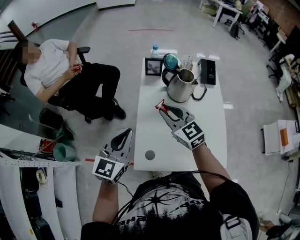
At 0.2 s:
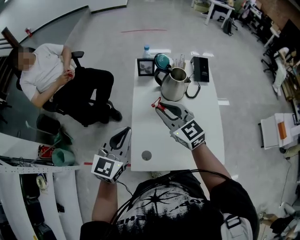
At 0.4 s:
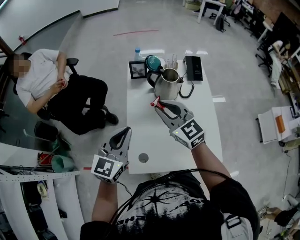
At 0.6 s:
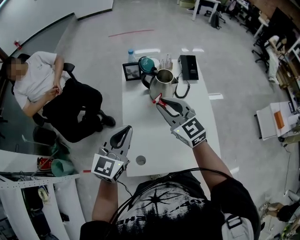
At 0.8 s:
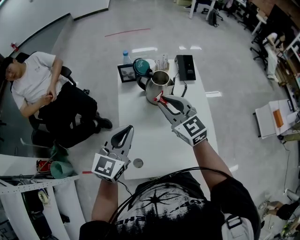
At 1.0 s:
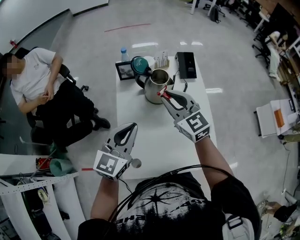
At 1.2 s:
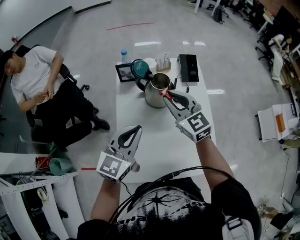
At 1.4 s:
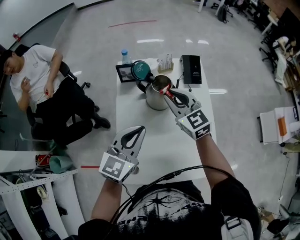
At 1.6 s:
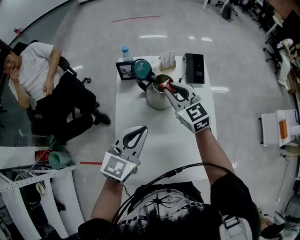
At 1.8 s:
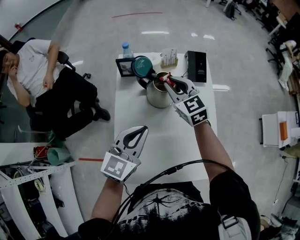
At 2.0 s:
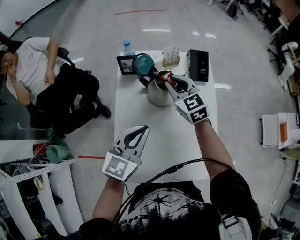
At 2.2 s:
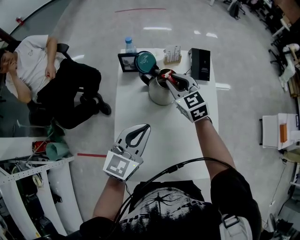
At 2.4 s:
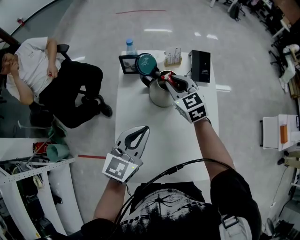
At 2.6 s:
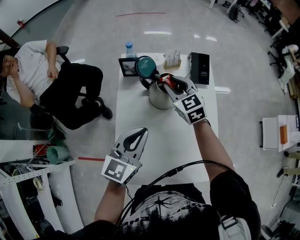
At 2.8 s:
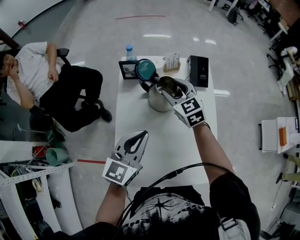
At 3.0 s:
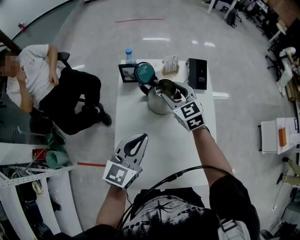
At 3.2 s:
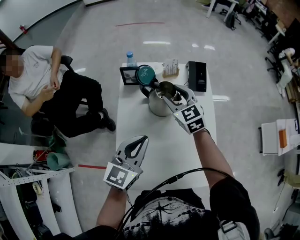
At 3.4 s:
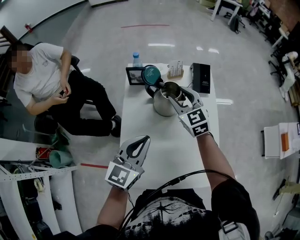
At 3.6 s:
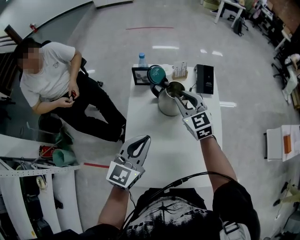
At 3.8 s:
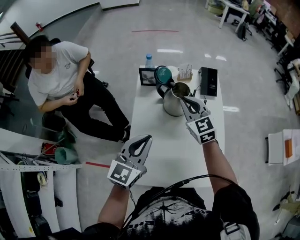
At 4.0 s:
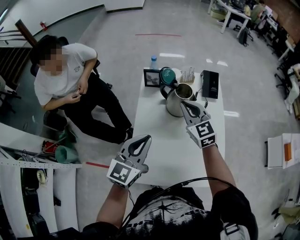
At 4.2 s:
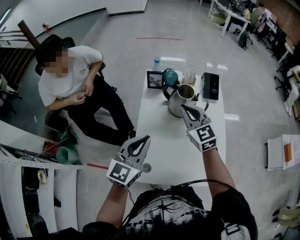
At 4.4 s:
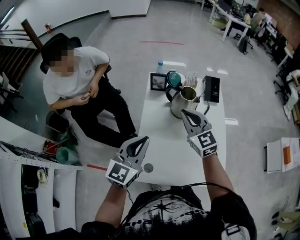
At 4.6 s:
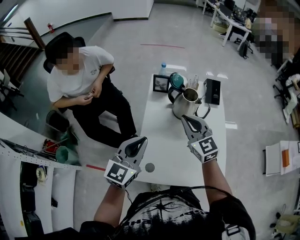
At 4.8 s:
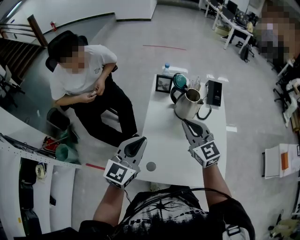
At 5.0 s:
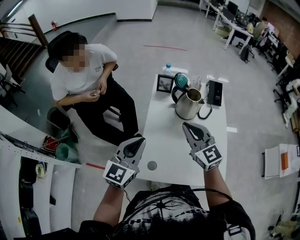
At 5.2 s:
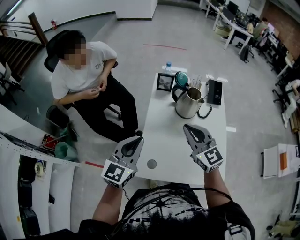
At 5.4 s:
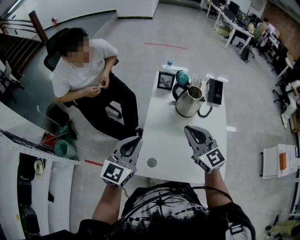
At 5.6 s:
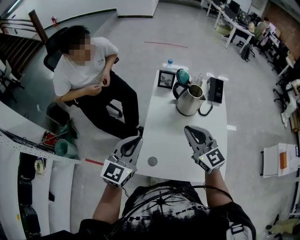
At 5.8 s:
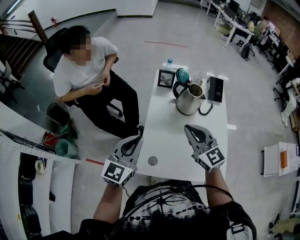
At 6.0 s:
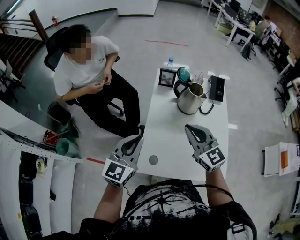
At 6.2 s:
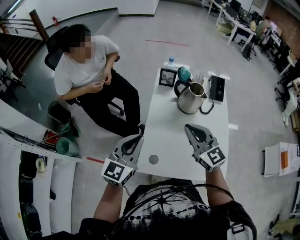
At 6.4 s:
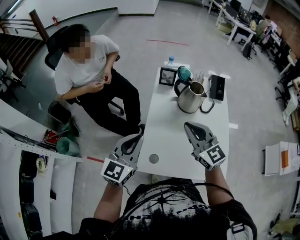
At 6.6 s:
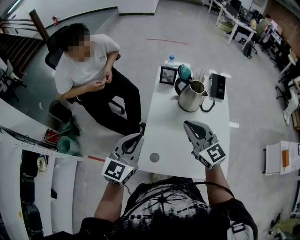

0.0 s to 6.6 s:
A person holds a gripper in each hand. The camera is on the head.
0.0 to 1.6 s: The left gripper moves to the right and forward, roughly 20 cm. The right gripper moves forward and to the right, approximately 20 cm.
1.6 to 3.2 s: The right gripper opens up.
3.2 to 5.0 s: The right gripper travels backward, upward and to the left by some 25 cm, swivels roughly 20 degrees, and closes. Meanwhile the left gripper goes roughly 20 cm to the left and backward.
5.0 to 6.6 s: The grippers stay close to where they were, moving slightly.

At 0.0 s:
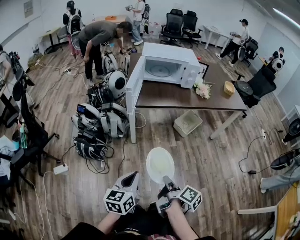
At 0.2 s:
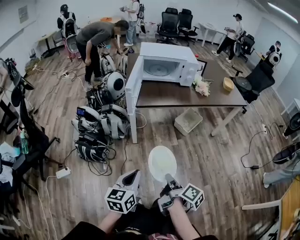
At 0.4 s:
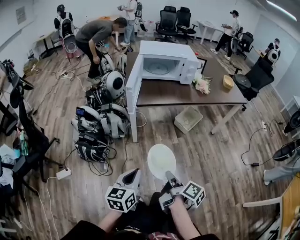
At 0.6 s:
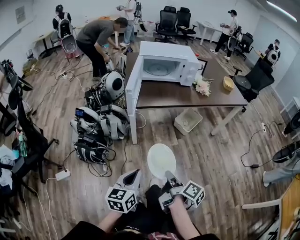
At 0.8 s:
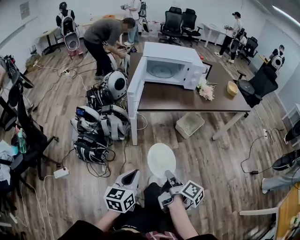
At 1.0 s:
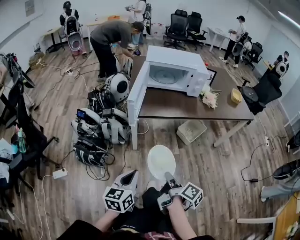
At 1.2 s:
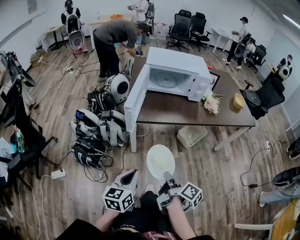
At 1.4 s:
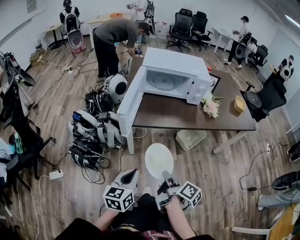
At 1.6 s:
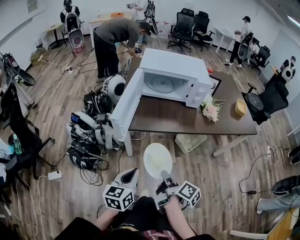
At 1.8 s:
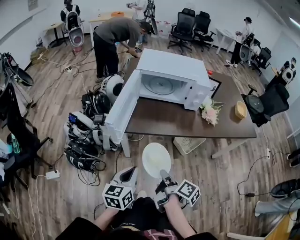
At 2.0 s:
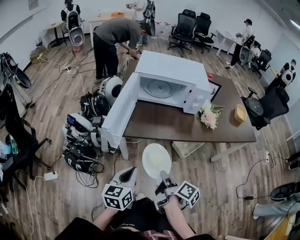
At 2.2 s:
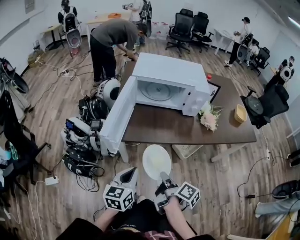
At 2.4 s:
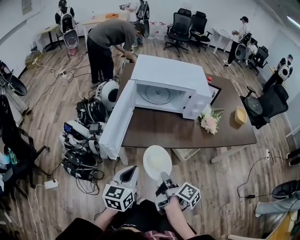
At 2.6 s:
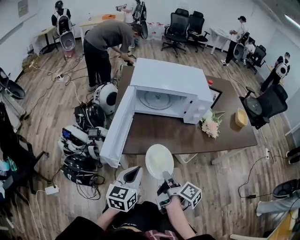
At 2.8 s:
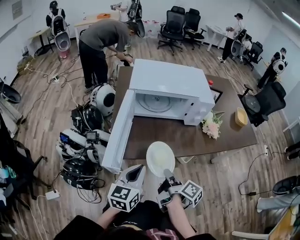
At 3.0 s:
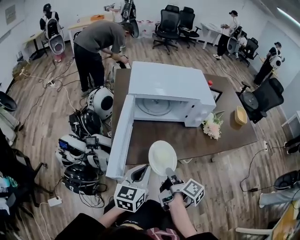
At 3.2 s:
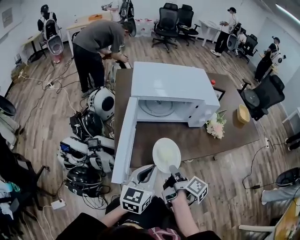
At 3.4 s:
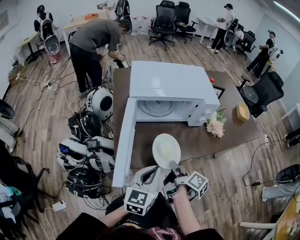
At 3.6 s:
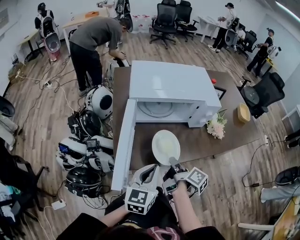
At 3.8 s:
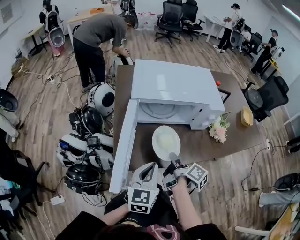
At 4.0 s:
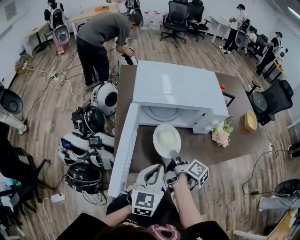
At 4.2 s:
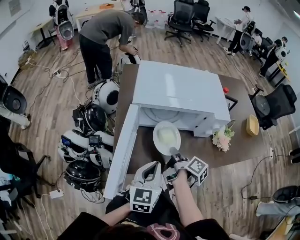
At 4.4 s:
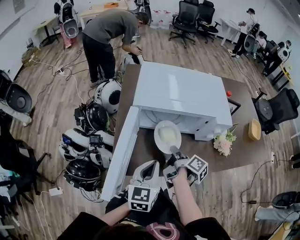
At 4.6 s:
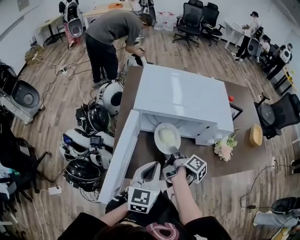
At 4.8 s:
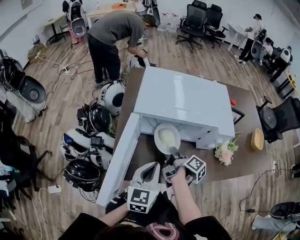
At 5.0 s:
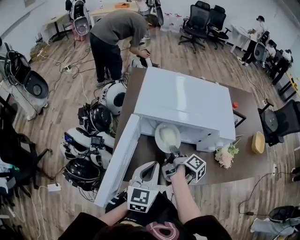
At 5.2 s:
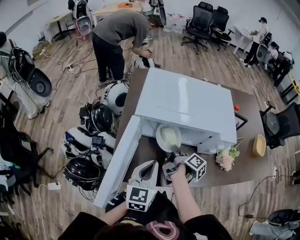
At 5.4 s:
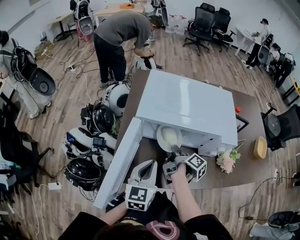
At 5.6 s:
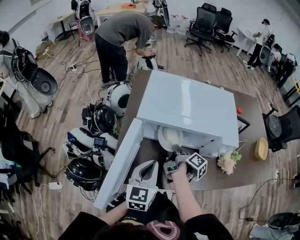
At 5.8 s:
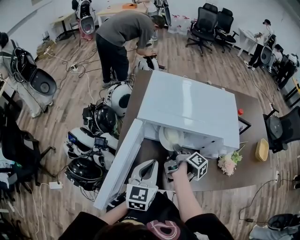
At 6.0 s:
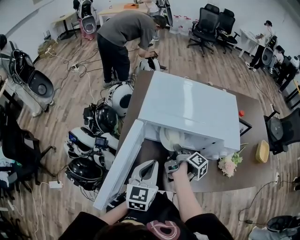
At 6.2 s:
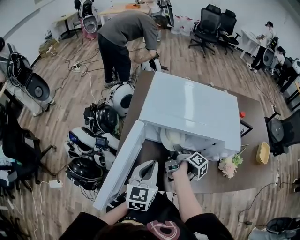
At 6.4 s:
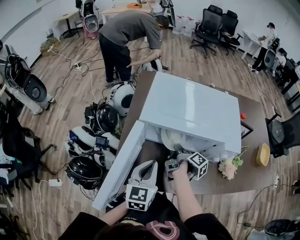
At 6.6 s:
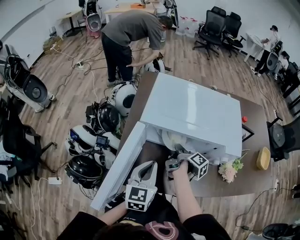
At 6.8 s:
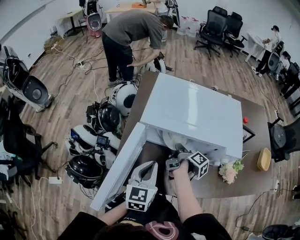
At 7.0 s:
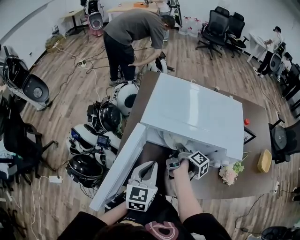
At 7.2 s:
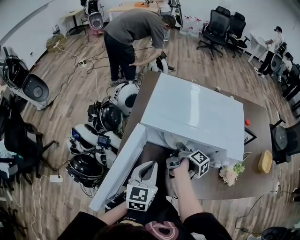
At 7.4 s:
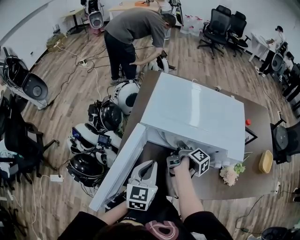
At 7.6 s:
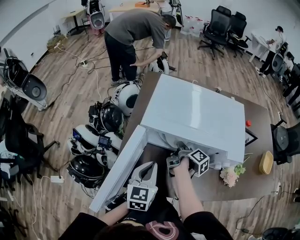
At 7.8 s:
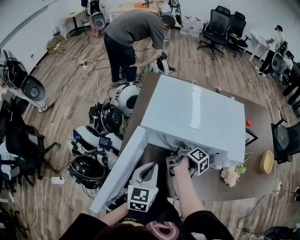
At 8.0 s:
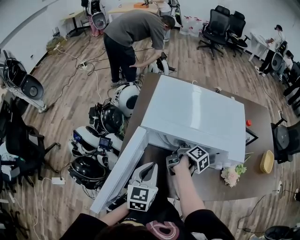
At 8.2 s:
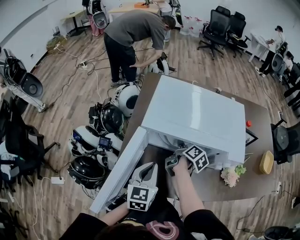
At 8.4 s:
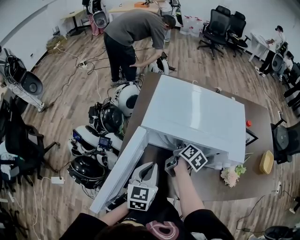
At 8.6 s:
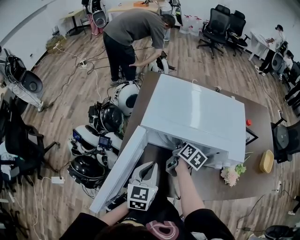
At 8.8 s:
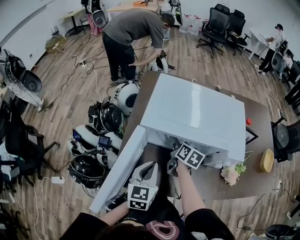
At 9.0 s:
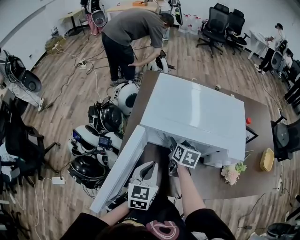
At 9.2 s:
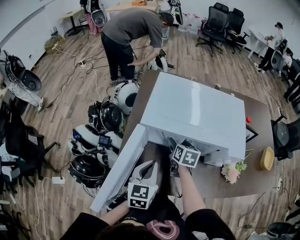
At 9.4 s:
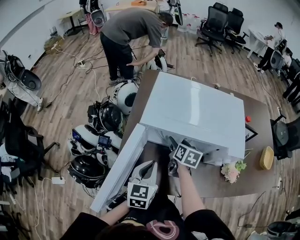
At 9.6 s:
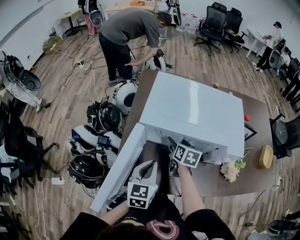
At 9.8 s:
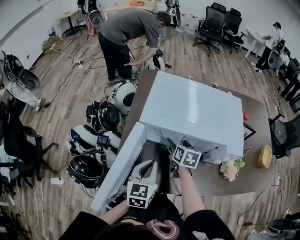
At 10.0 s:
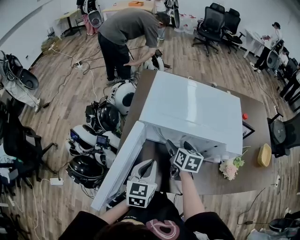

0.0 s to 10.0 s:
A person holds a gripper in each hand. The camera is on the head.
0.0 to 1.4 s: Both grippers travel together forward, about 20 cm.
1.4 to 2.8 s: The two grippers go some 25 cm forward.
2.8 to 4.2 s: The left gripper goes approximately 10 cm forward. Meanwhile the right gripper shifts approximately 20 cm forward.
4.2 to 5.8 s: Both grippers move forward, roughly 10 cm.
5.8 to 7.2 s: The grippers make only small movements.
7.2 to 8.6 s: The right gripper twists roughly 40 degrees counterclockwise, seen from behind.
8.6 to 10.0 s: The right gripper swivels about 30 degrees, and opens its fingers.

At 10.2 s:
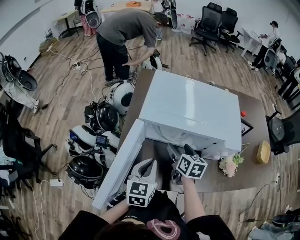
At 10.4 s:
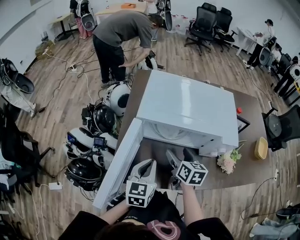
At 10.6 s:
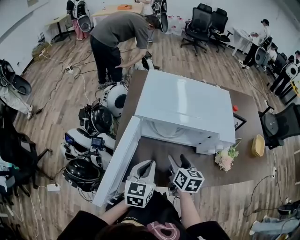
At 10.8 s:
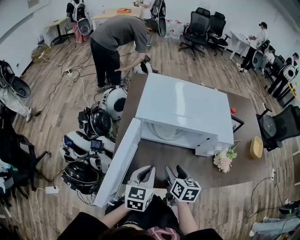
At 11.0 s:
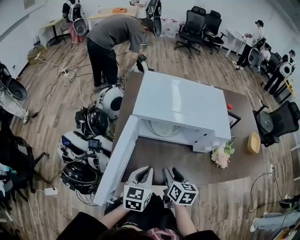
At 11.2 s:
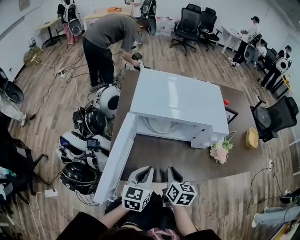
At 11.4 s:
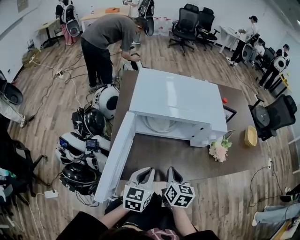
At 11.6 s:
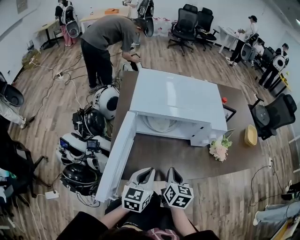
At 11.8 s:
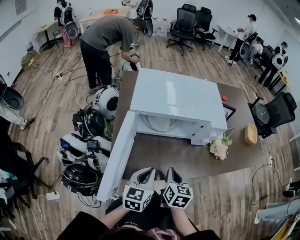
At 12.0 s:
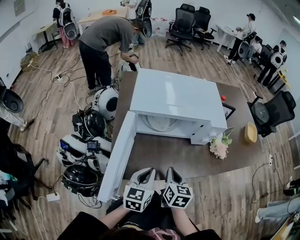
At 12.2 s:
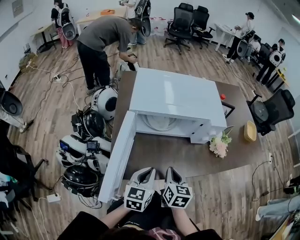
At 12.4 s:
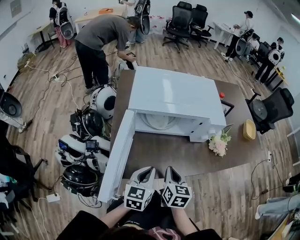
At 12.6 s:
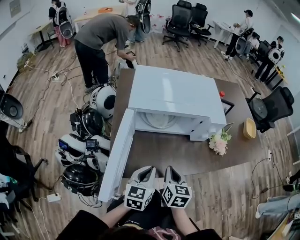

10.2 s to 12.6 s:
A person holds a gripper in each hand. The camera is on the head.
10.2 to 11.4 s: The right gripper goes about 15 cm backward, and closes up, while the left gripper is displaced backward by approximately 10 cm.
11.4 to 12.6 s: The grippers move only a little.

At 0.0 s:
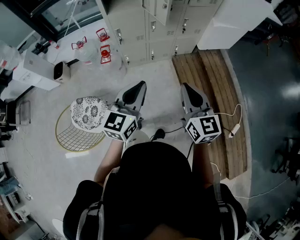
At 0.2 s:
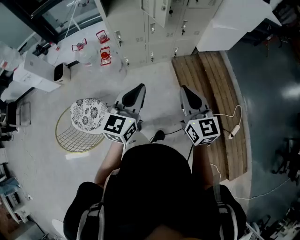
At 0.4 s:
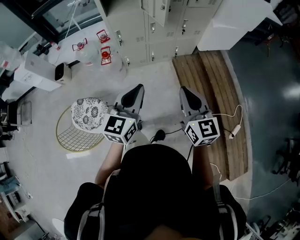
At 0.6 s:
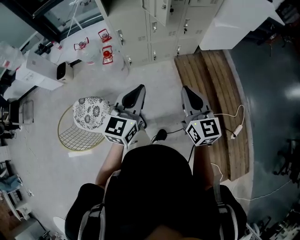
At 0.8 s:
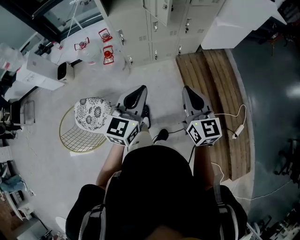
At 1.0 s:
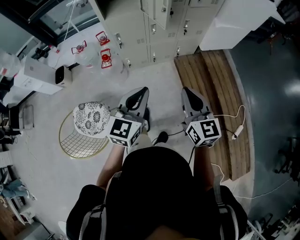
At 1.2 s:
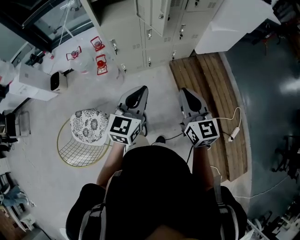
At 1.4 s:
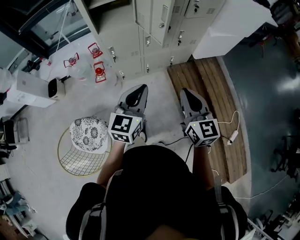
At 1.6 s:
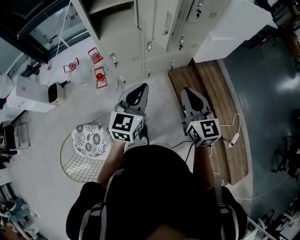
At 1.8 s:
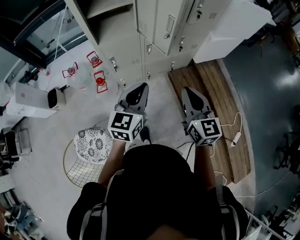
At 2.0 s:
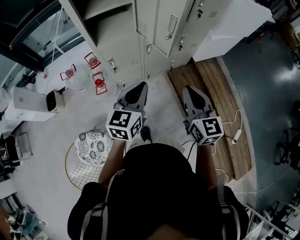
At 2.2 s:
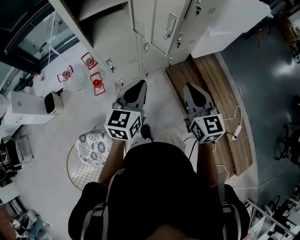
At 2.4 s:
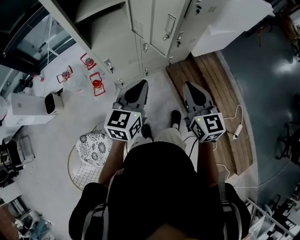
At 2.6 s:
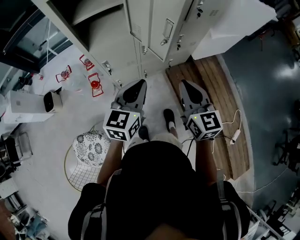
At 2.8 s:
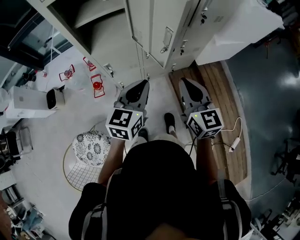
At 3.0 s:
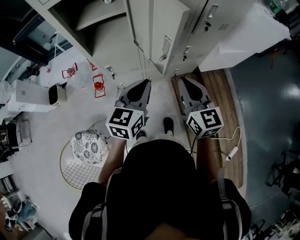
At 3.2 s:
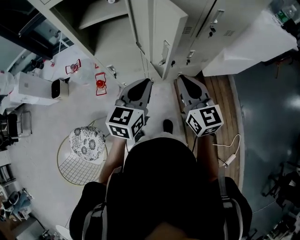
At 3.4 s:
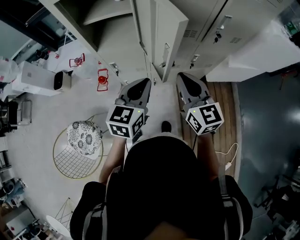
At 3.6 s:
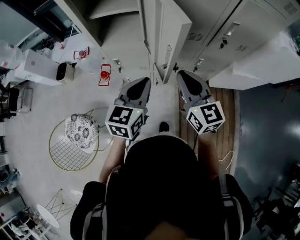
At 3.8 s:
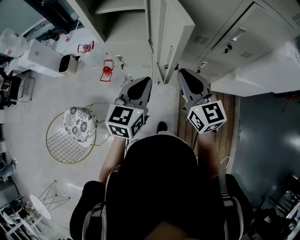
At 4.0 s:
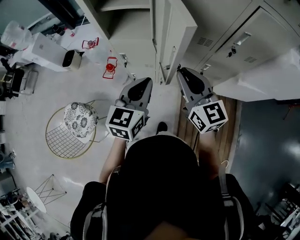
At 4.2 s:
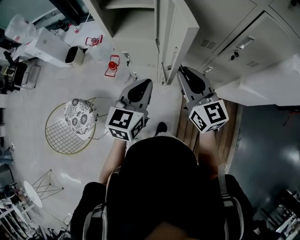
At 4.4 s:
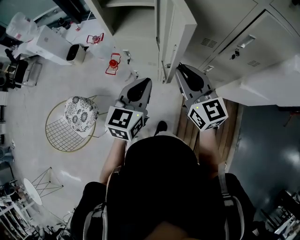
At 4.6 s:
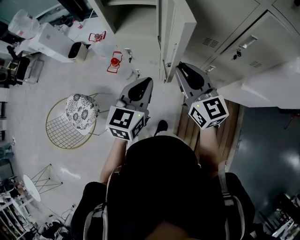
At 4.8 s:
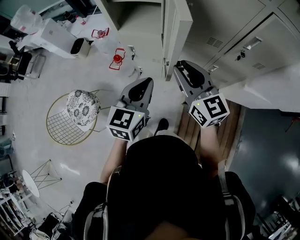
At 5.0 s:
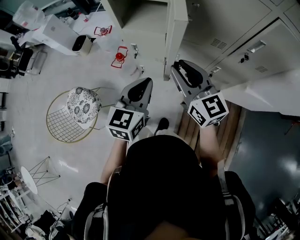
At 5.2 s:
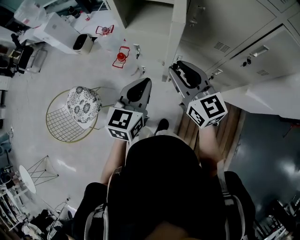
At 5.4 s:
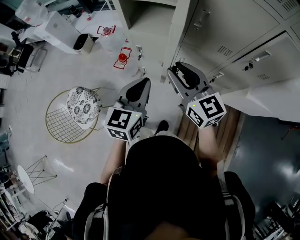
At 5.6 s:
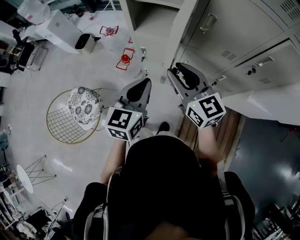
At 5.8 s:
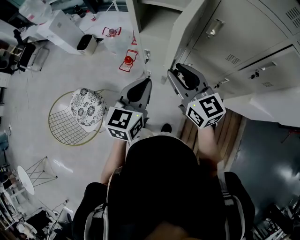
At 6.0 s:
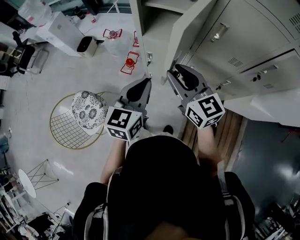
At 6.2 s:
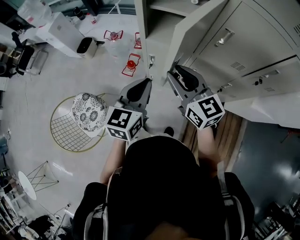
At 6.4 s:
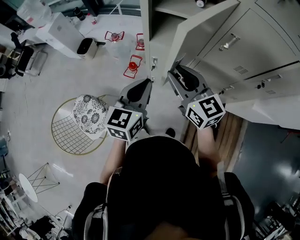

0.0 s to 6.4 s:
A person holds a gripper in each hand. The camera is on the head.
0.0 to 1.6 s: The two grippers go some 15 cm forward.
1.6 to 3.2 s: Both grippers move forward, roughly 20 cm.
3.2 to 4.8 s: The right gripper changes place by about 5 cm, rotates some 30 degrees, and opens its fingers; the left gripper turns by some 20 degrees.
4.8 to 6.4 s: Both grippers travel together to the left and forward, roughly 20 cm.
